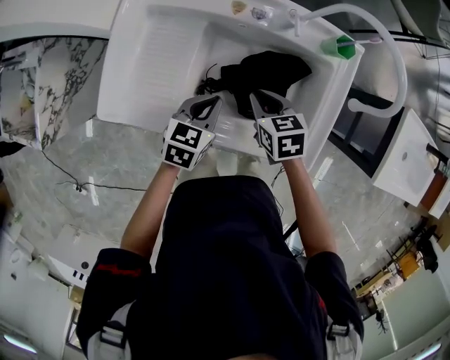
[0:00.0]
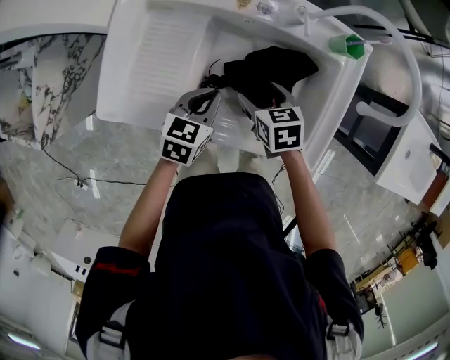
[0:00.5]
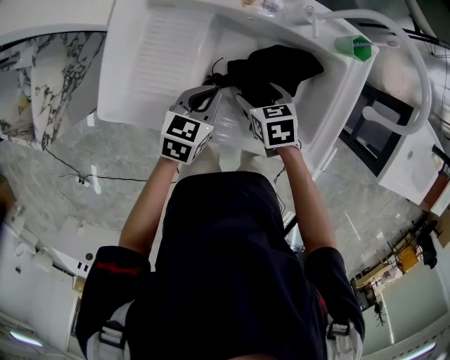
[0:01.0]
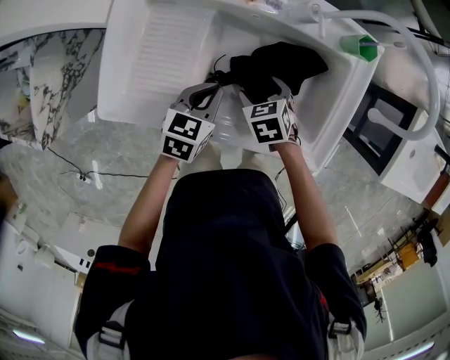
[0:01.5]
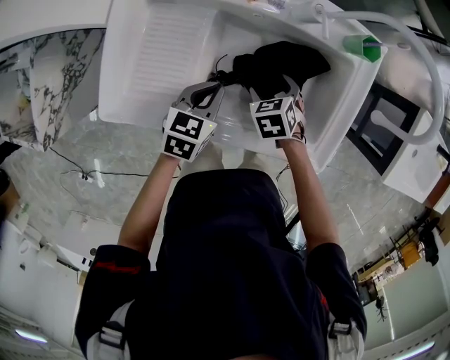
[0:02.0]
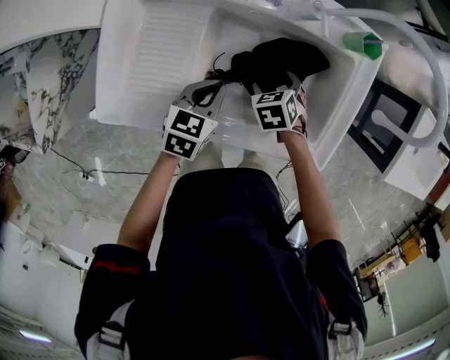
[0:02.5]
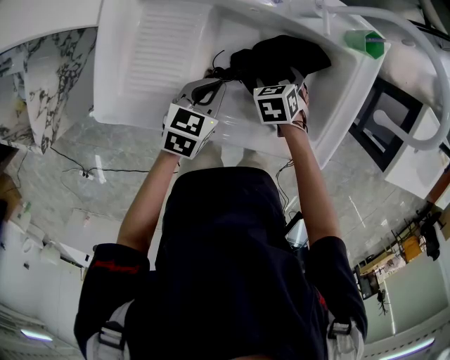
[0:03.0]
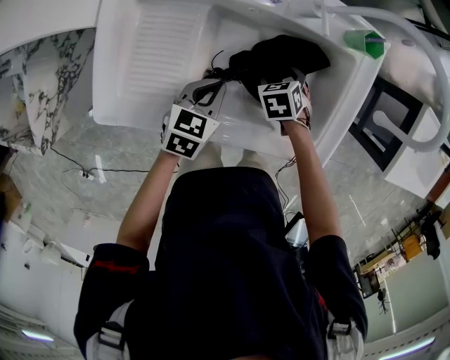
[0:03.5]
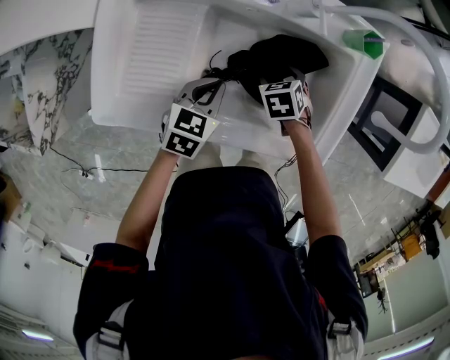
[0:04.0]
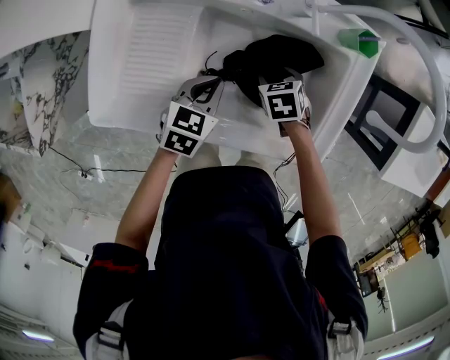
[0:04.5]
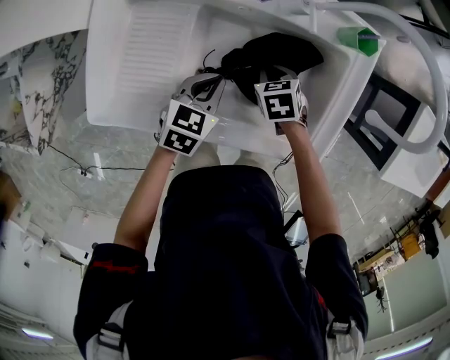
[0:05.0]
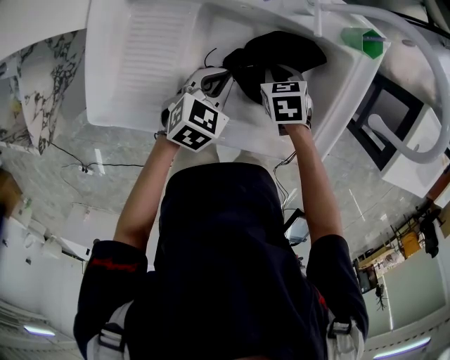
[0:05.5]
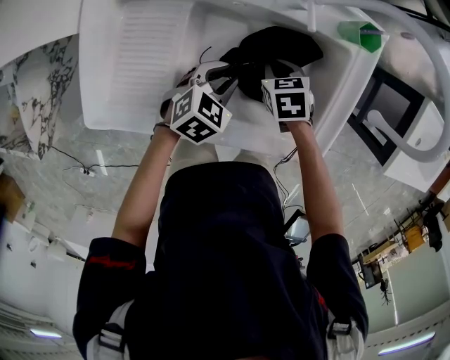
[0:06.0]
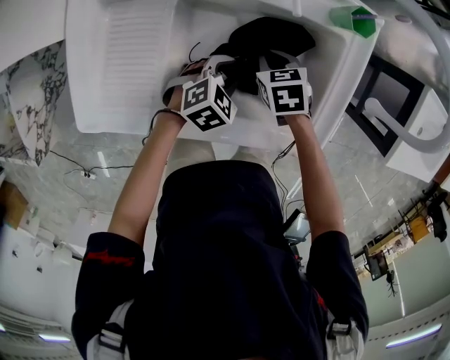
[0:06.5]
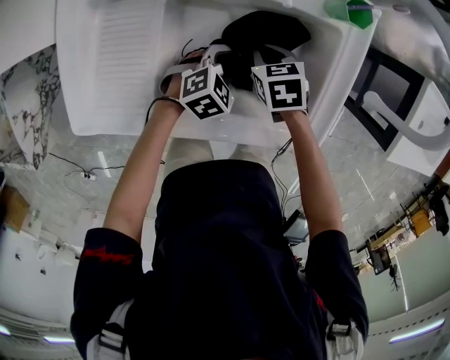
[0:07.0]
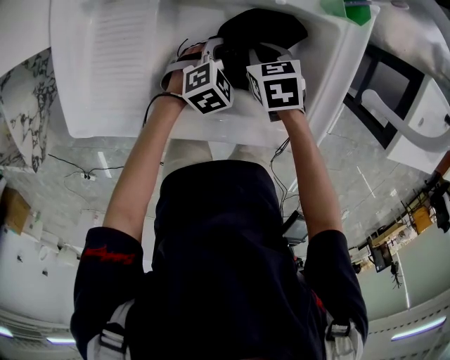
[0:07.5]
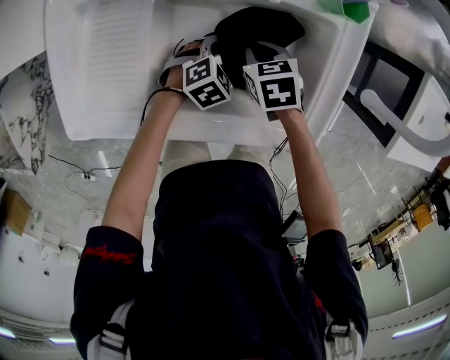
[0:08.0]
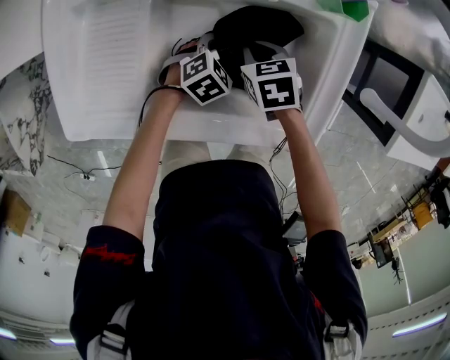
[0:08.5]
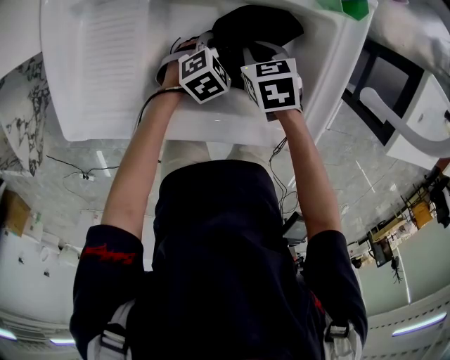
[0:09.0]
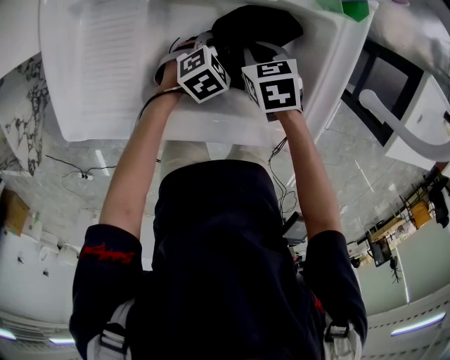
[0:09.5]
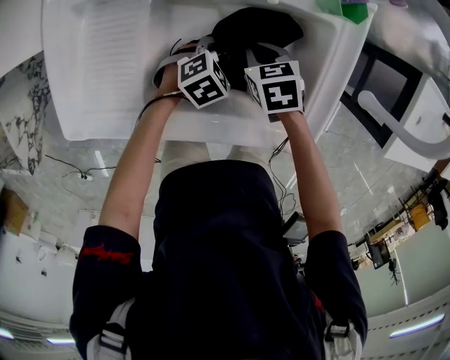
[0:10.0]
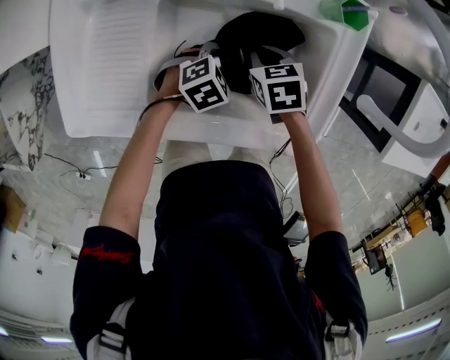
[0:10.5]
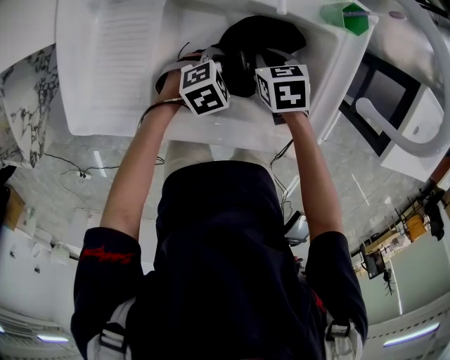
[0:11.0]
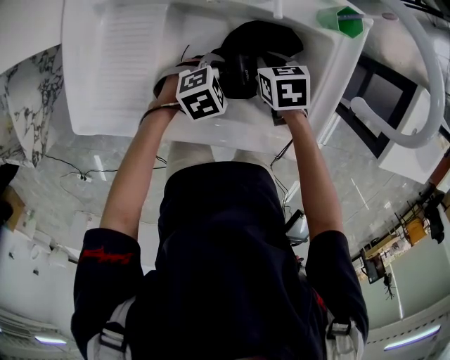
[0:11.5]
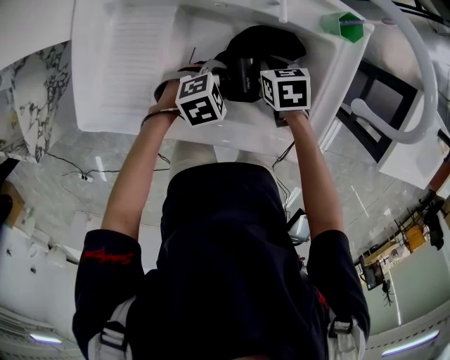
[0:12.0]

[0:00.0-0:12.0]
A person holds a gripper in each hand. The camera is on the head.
0:00.0 to 0:02.0: The right gripper shifts about 10 cm downward, swivels approximately 20 degrees, and opens its fingers.
0:02.0 to 0:04.0: The right gripper changes place by roughly 5 cm.
0:04.0 to 0:06.0: The right gripper closes; the left gripper moves approximately 5 cm, turns by roughly 20 degrees, and opens.
0:06.0 to 0:08.0: The left gripper heads downward and to the right, covering approximately 10 cm, and opens up.
0:08.0 to 0:10.0: There are only small adjustments of the grippers.
0:10.0 to 0:12.0: The left gripper moves upward, some 5 cm.

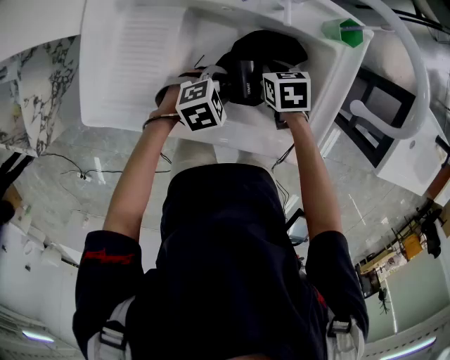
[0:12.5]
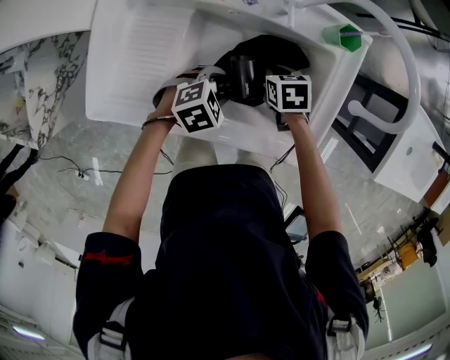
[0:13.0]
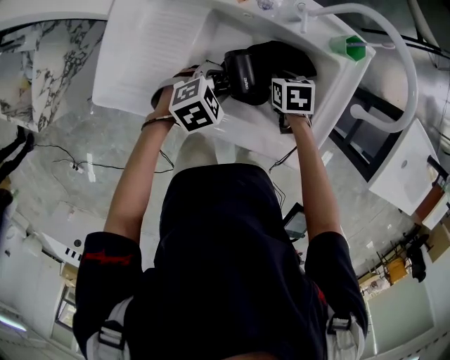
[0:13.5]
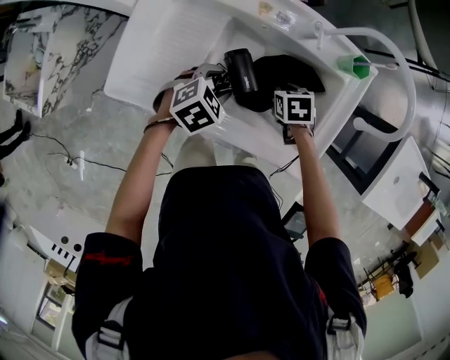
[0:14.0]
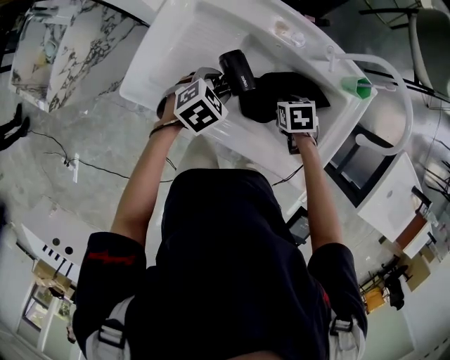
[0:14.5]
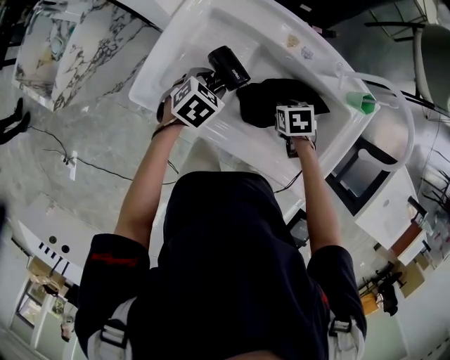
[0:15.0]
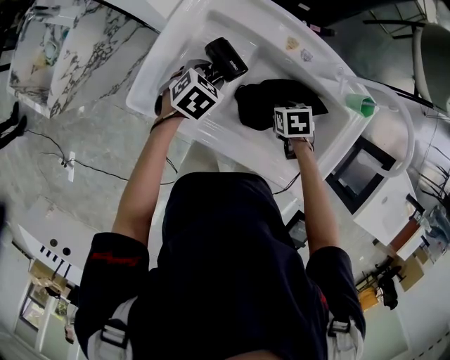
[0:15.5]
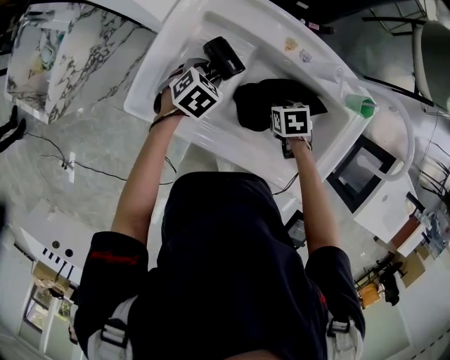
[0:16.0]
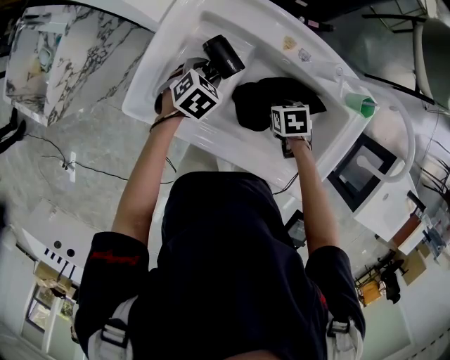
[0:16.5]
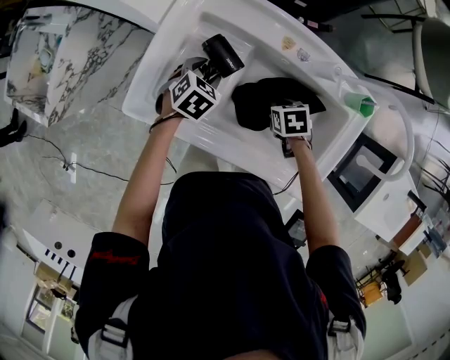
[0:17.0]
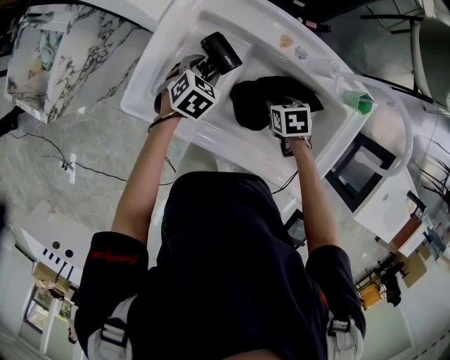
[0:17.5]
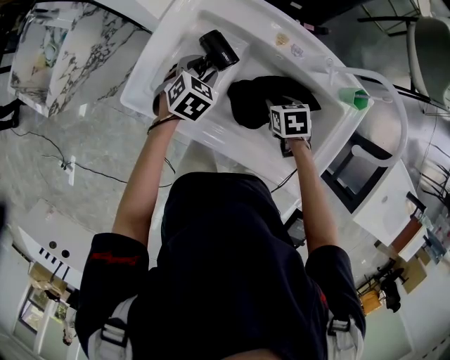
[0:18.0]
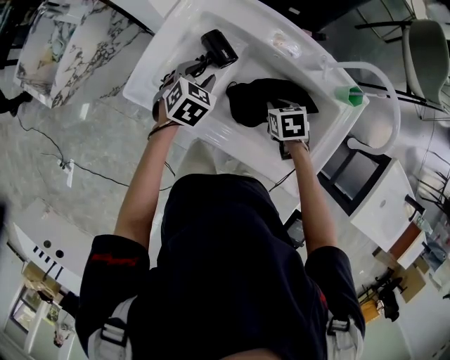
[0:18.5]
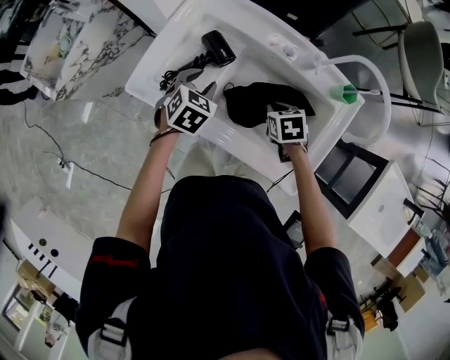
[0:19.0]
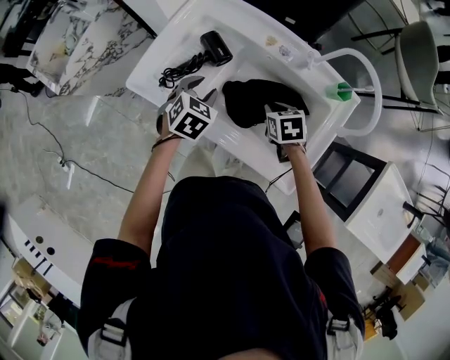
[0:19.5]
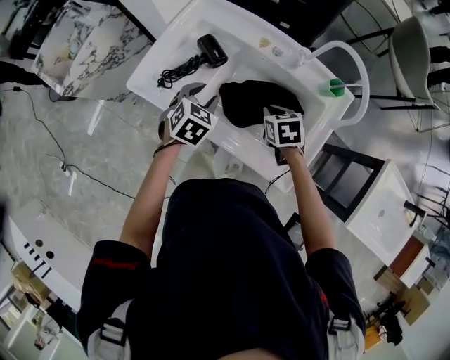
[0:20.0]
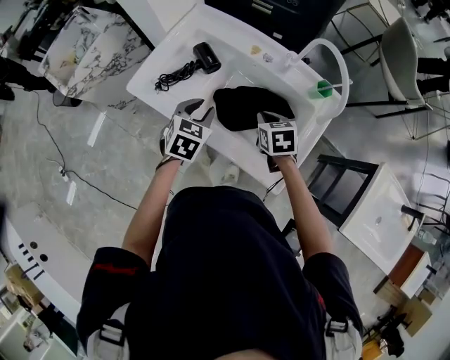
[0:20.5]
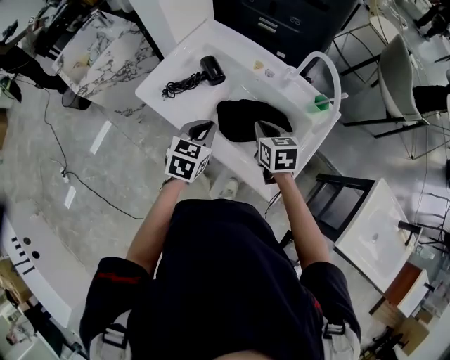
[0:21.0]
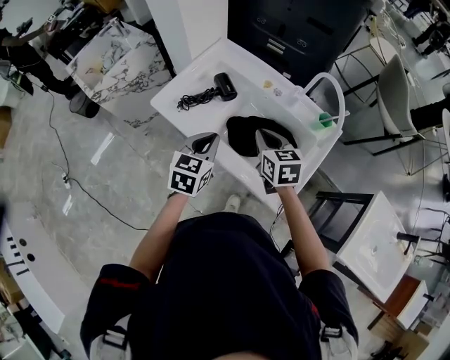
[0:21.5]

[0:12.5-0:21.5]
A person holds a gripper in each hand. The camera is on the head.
0:12.5 to 0:14.5: The left gripper ends up roughly 15 cm from where it was, and swivels some 30 degrees. Meanwhile the right gripper changes place by roughly 5 cm.
0:14.5 to 0:17.0: The left gripper moves about 10 cm.
0:17.0 to 0:19.5: The right gripper goes about 5 cm upward; the left gripper is displaced backward and upward by approximately 15 cm.
0:19.5 to 0:21.5: The right gripper moves upward, approximately 15 cm, and rotates some 30 degrees; the left gripper heads backward and upward, covering approximately 15 cm, turns by some 30 degrees, and closes its fingers.

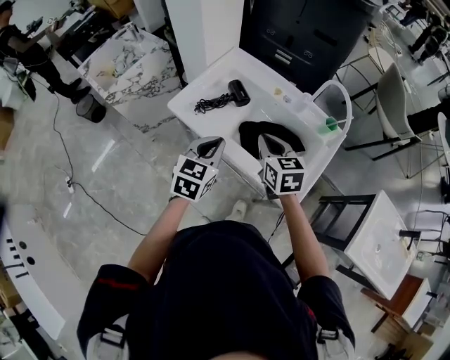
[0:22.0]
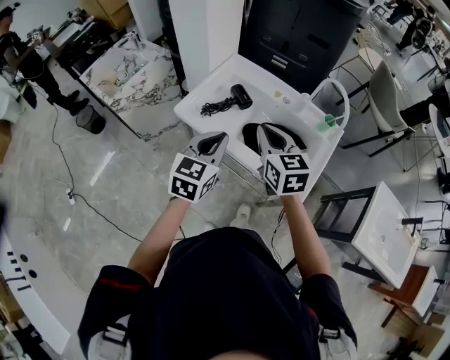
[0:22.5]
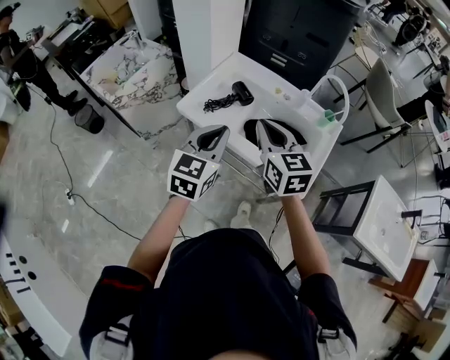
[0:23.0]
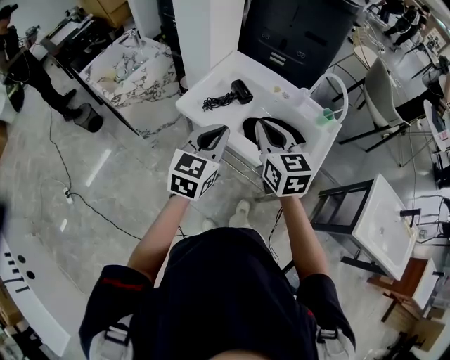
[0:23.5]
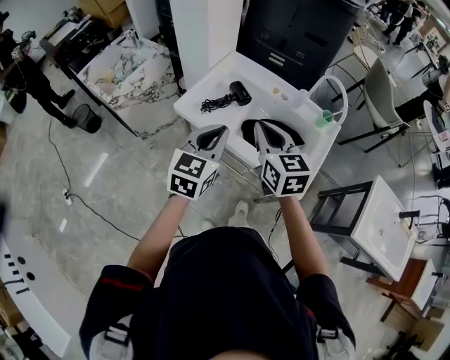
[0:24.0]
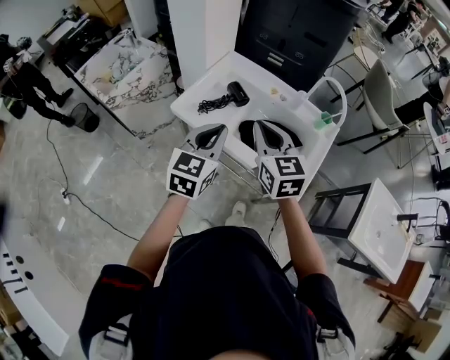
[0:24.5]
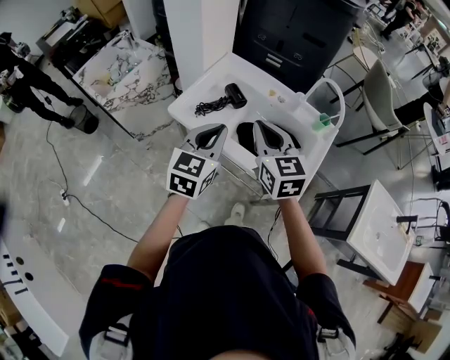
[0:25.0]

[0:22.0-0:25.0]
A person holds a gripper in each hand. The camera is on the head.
0:22.0 to 0:23.5: The right gripper moves upward, backward and to the left, some 15 cm; the left gripper moves upward and backward, about 10 cm.
0:23.5 to 0:25.0: The grippers stay close to where they were, moving slightly.

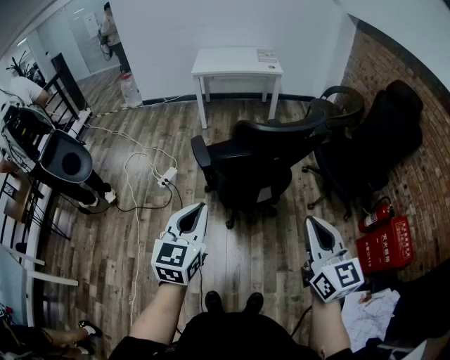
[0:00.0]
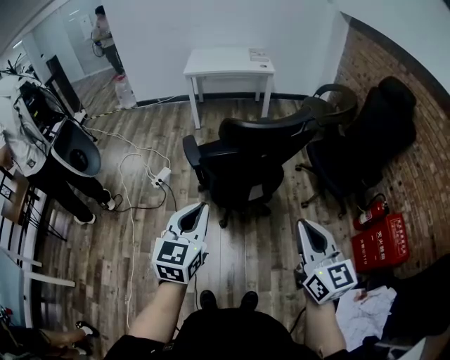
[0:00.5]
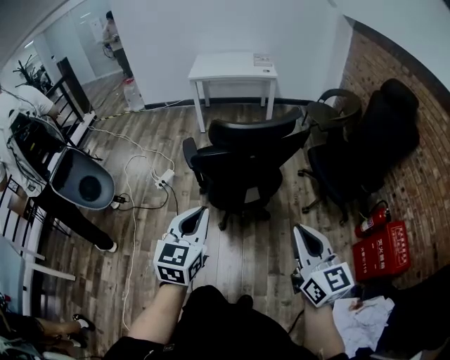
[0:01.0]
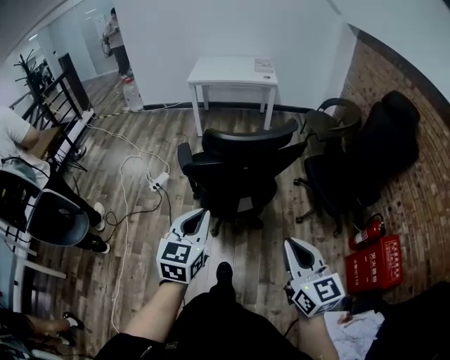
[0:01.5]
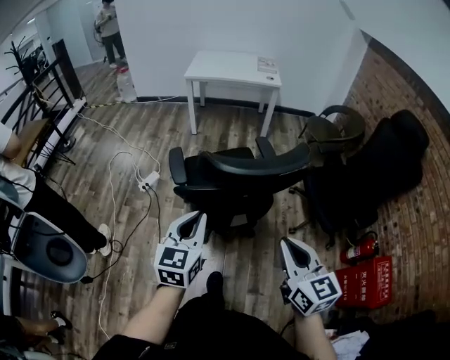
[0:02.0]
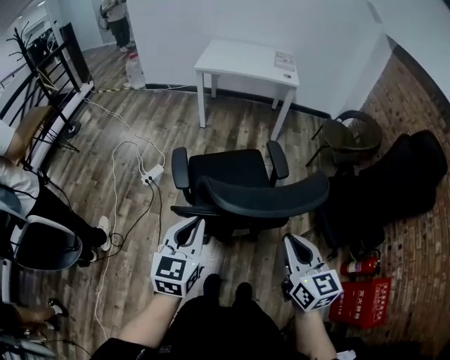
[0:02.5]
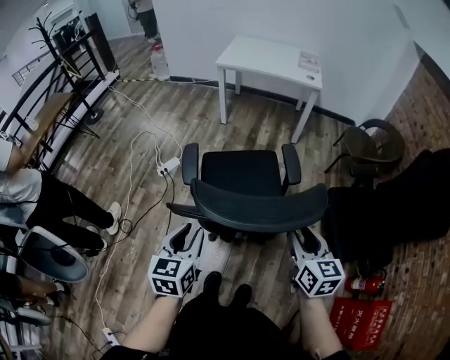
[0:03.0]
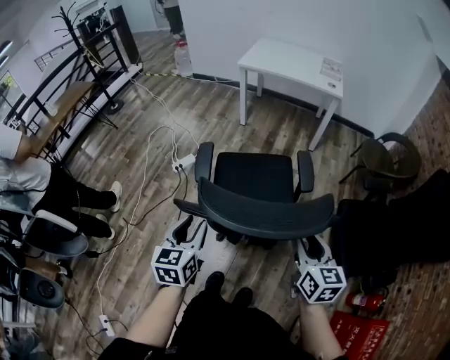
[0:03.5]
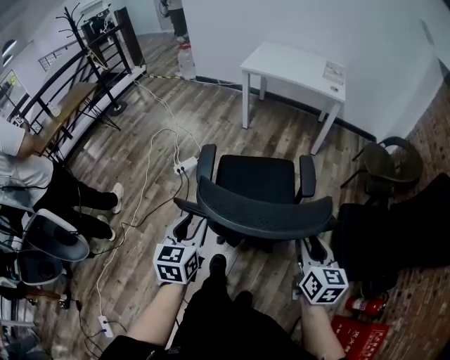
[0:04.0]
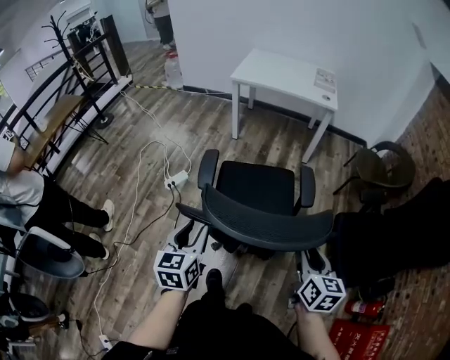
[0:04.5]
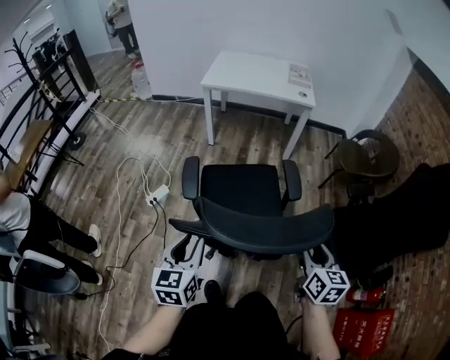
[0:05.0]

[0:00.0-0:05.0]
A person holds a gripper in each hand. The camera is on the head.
0:00.0 to 0:02.5: The left gripper heads forward and to the right, covering some 25 cm. Meanwhile the right gripper is displaced forward by roughly 25 cm.
0:02.5 to 0:05.0: The right gripper is displaced forward and to the right by about 20 cm, and opens its fingers. Meanwhile the left gripper heads forward, covering roughly 15 cm, and opens its fingers.
